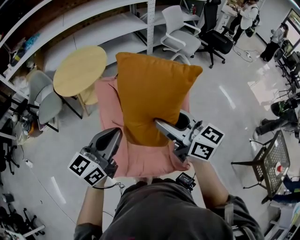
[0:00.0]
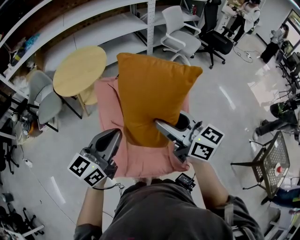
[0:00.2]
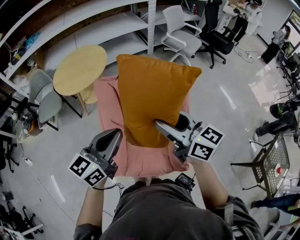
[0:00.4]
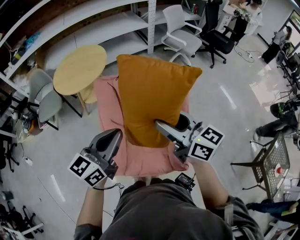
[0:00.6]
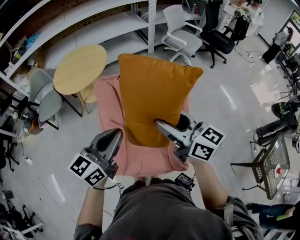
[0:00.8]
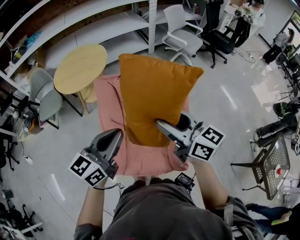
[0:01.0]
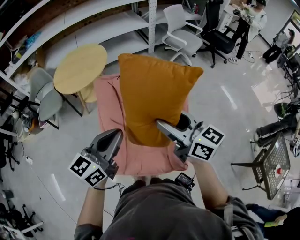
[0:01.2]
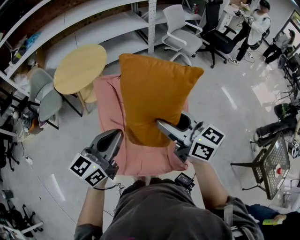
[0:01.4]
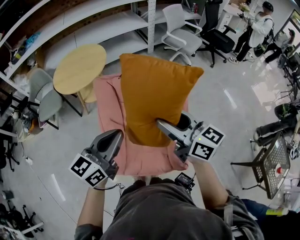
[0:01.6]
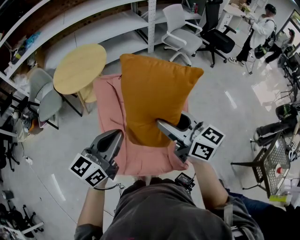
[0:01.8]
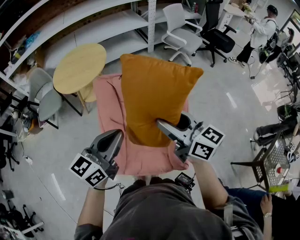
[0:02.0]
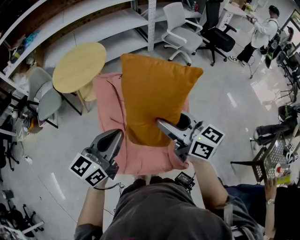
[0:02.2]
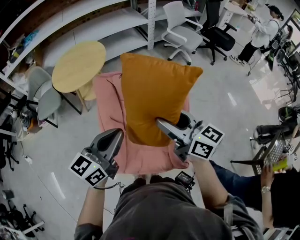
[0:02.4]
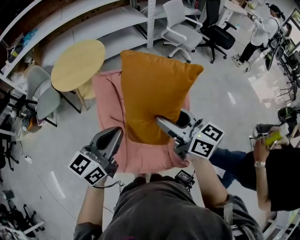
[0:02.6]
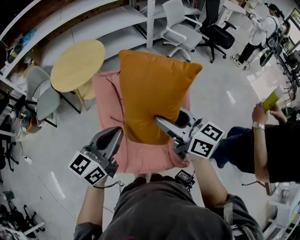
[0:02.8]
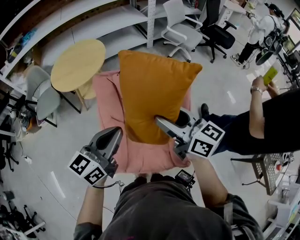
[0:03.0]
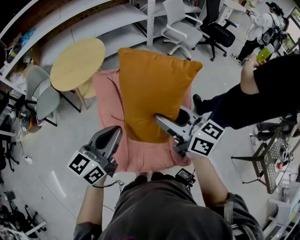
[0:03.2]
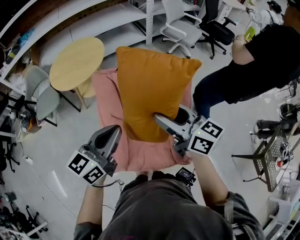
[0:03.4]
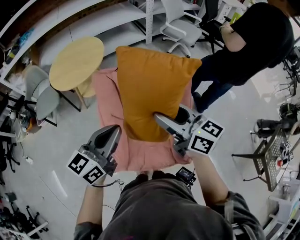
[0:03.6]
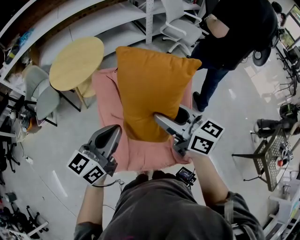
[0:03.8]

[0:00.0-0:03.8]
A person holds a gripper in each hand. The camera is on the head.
0:00.0 to 0:03.8: The grippers move only a little.

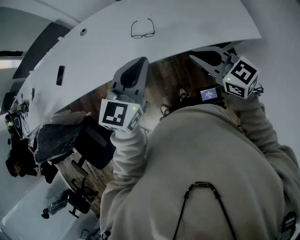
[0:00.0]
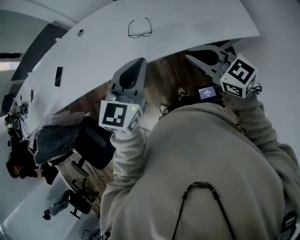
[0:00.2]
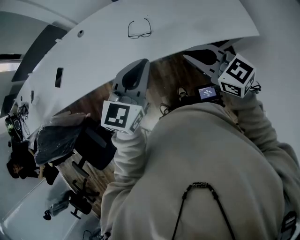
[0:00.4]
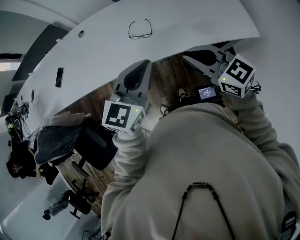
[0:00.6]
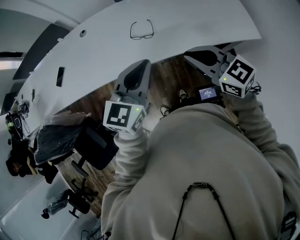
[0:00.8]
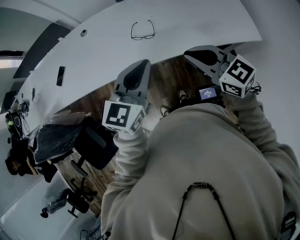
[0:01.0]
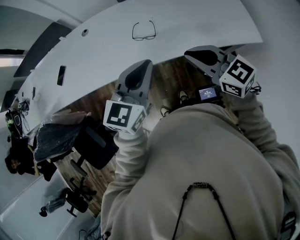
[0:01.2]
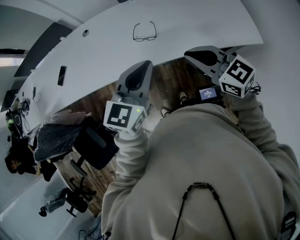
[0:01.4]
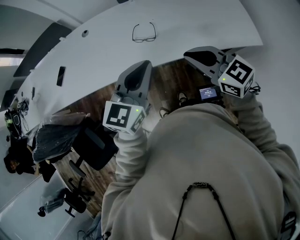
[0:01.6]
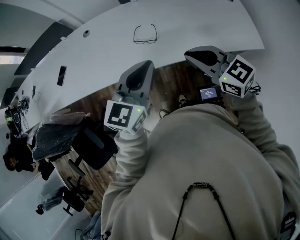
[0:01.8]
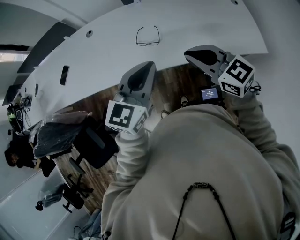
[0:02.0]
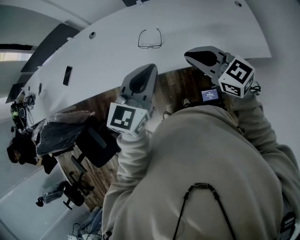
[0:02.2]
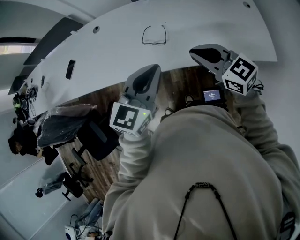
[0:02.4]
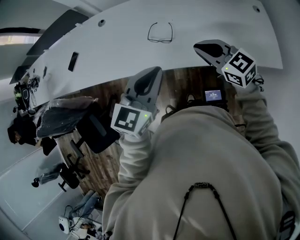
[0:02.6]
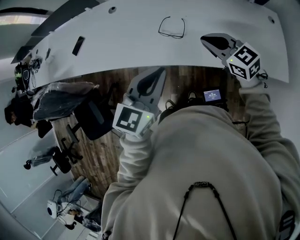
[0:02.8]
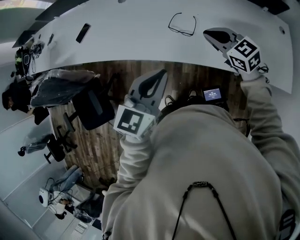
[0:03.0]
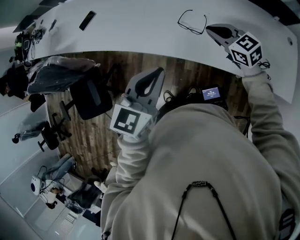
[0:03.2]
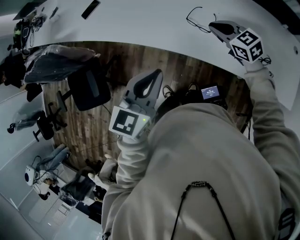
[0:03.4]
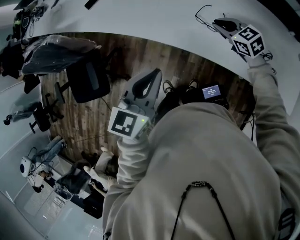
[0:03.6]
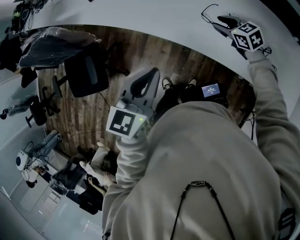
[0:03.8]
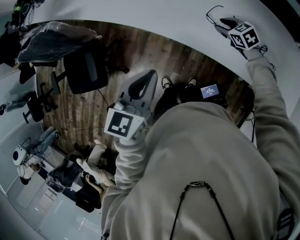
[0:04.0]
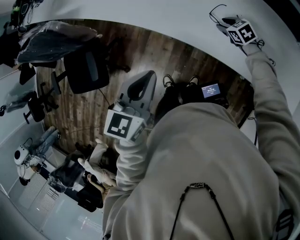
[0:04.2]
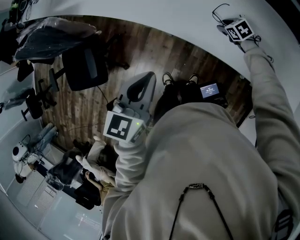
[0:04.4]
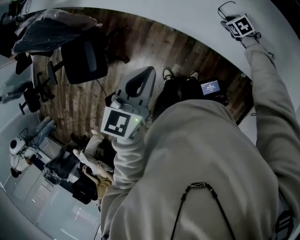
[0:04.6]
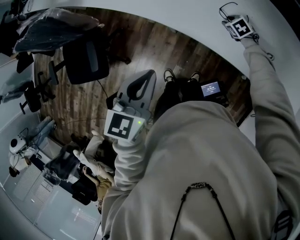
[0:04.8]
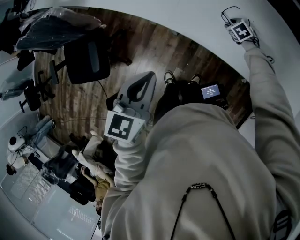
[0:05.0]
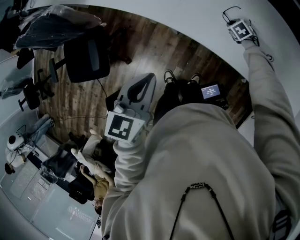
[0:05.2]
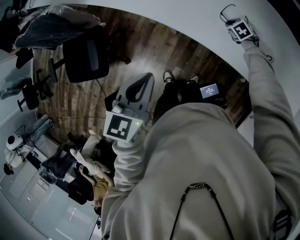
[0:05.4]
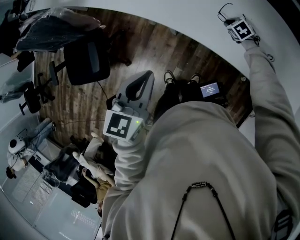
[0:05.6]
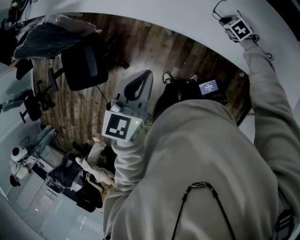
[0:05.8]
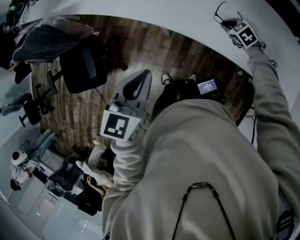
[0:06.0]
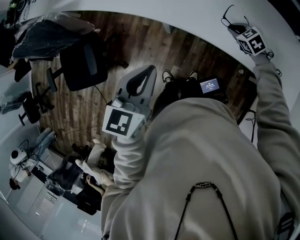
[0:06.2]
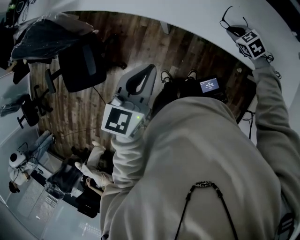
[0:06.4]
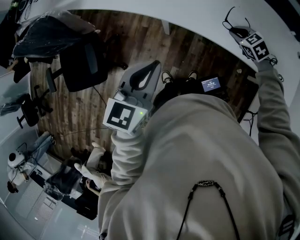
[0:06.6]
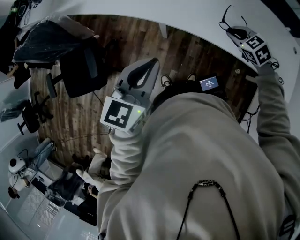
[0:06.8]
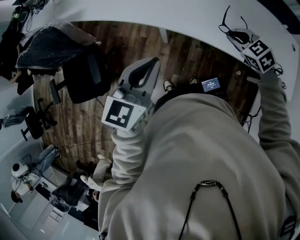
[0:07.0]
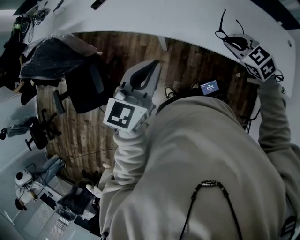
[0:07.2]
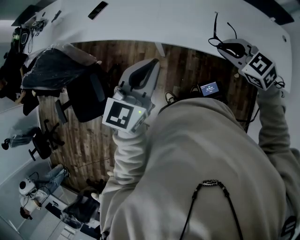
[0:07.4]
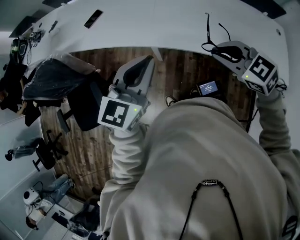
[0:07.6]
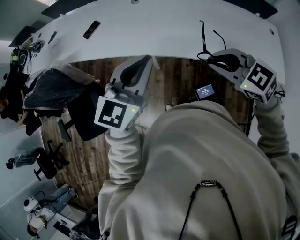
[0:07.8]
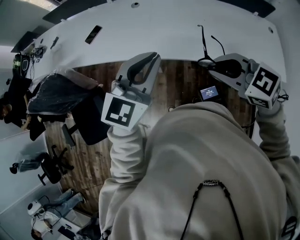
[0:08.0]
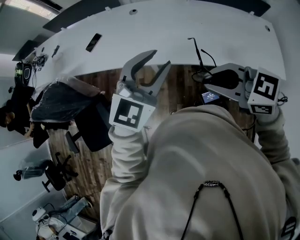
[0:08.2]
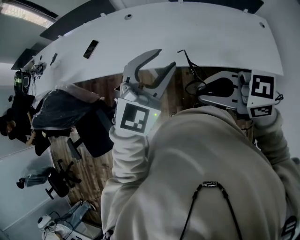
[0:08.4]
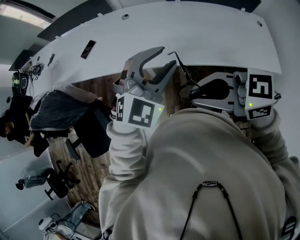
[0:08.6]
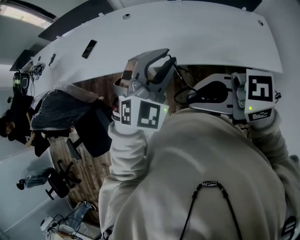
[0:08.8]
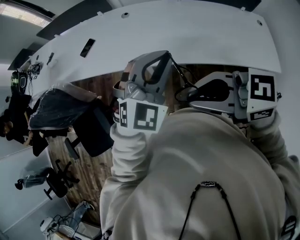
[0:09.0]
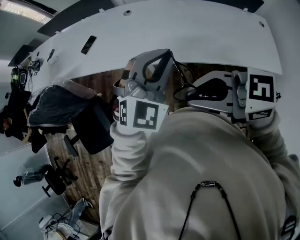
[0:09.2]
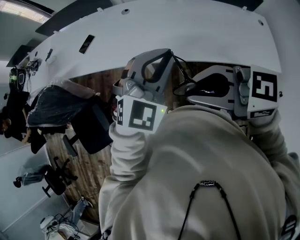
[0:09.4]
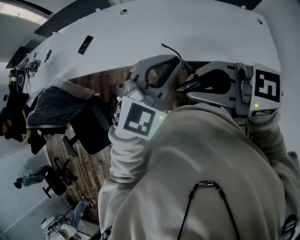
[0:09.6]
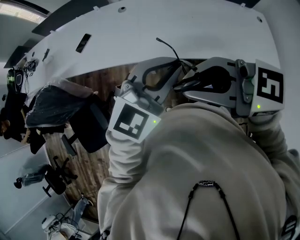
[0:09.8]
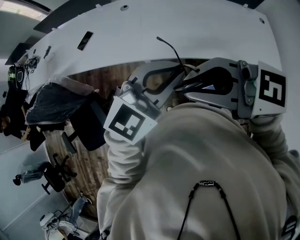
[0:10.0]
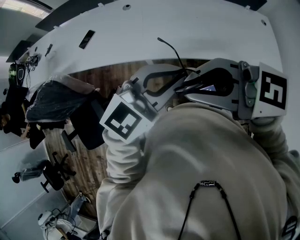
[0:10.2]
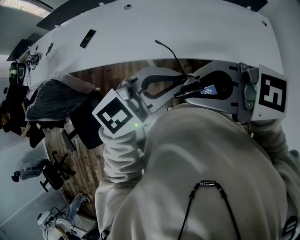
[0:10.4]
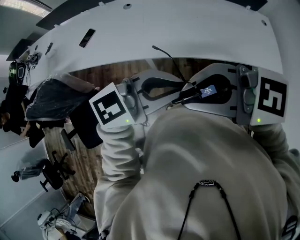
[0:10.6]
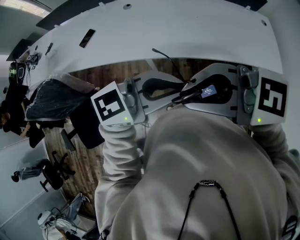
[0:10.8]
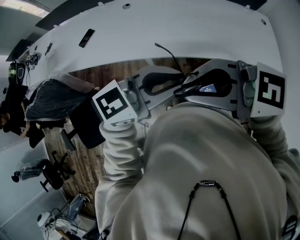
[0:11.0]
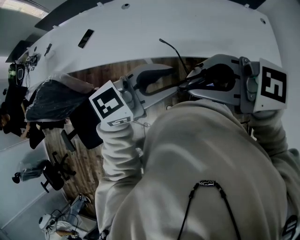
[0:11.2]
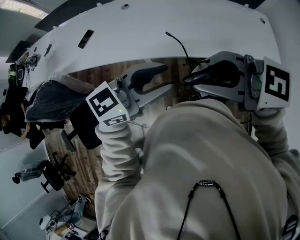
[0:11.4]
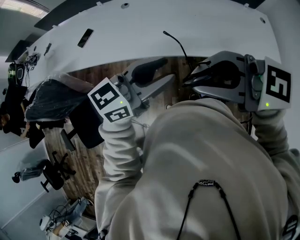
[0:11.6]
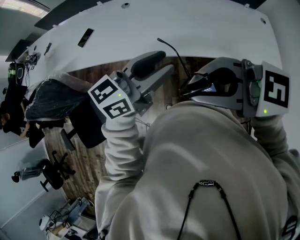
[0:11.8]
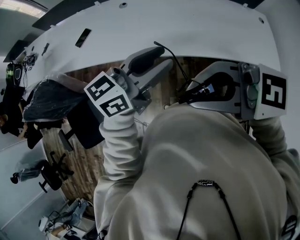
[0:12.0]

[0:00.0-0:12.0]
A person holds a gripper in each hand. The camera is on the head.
0:00.0 to 0:01.6: The grippers make only small movements.
0:01.6 to 0:03.0: The right gripper is displaced forward and downward by approximately 20 cm.
0:03.0 to 0:04.4: The left gripper shifts roughly 20 cm to the left and downward, and turns by about 20 degrees; the right gripper travels downward and forward by about 30 cm, tilts its fingers some 40 degrees downward, and opens its fingers.
0:04.4 to 0:06.0: The right gripper goes roughly 5 cm upward, and closes up.
0:06.0 to 0:07.6: The left gripper travels upward by about 10 cm, and changes its angle by about 30 degrees. The right gripper shifts about 35 cm upward and backward, and swivels roughly 30 degrees.
0:07.6 to 0:09.0: The left gripper goes some 10 cm to the right and upward, turns by some 40 degrees, and opens, then closes again. The right gripper travels upward, to the left and backward by approximately 20 cm, and turns by roughly 30 degrees.
0:09.0 to 0:10.4: The left gripper ends up approximately 10 cm from where it was, and swivels some 40 degrees.
0:10.4 to 0:12.0: The left gripper changes place by approximately 5 cm, turns by about 30 degrees, and opens up.

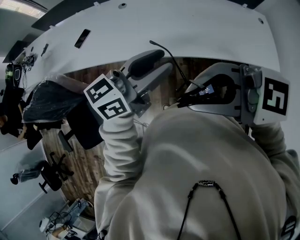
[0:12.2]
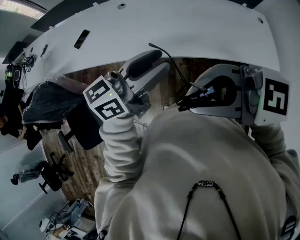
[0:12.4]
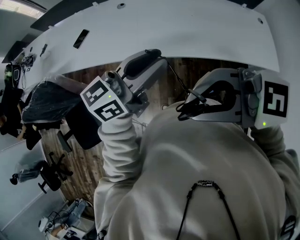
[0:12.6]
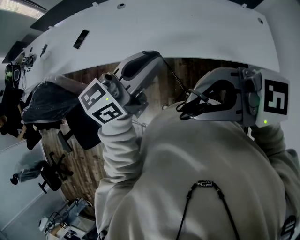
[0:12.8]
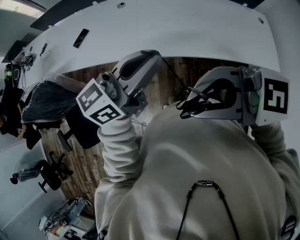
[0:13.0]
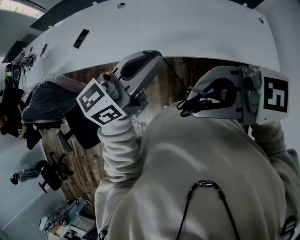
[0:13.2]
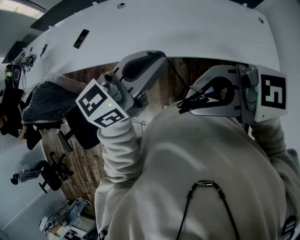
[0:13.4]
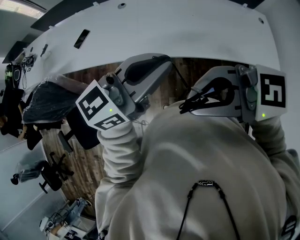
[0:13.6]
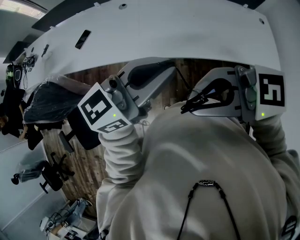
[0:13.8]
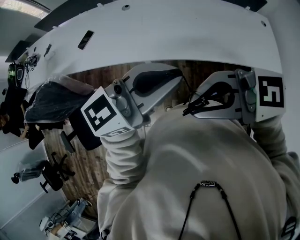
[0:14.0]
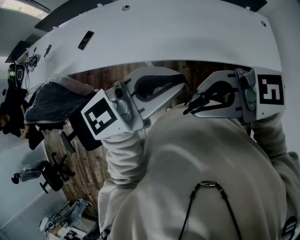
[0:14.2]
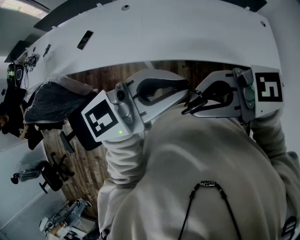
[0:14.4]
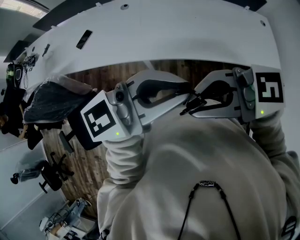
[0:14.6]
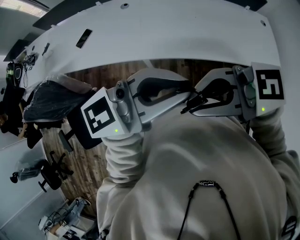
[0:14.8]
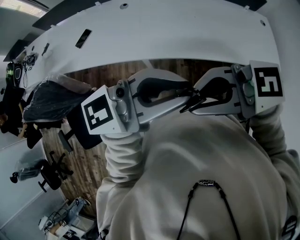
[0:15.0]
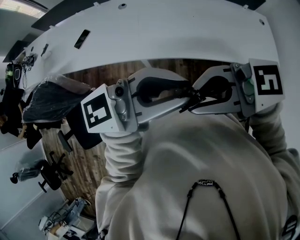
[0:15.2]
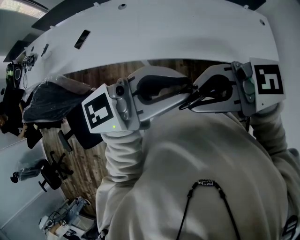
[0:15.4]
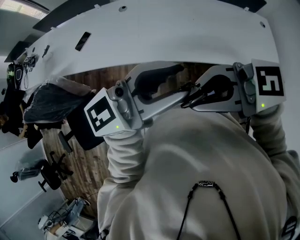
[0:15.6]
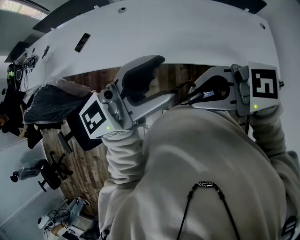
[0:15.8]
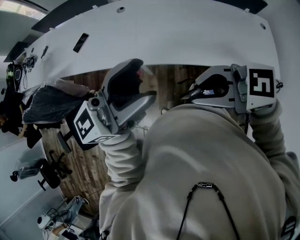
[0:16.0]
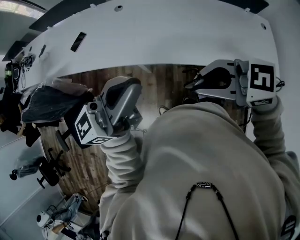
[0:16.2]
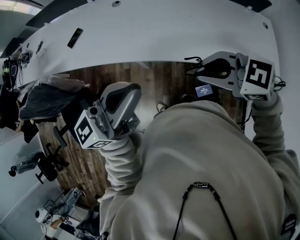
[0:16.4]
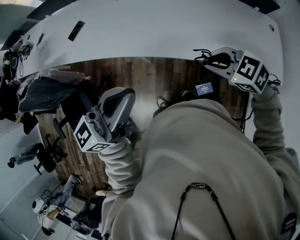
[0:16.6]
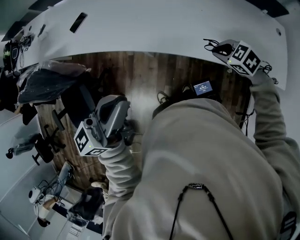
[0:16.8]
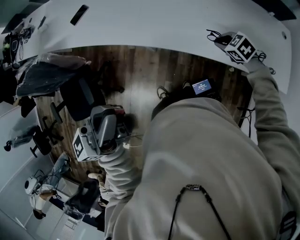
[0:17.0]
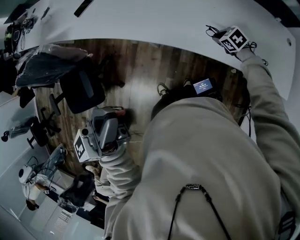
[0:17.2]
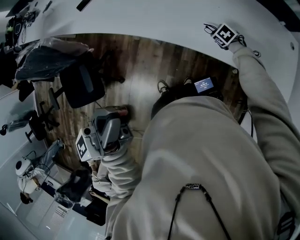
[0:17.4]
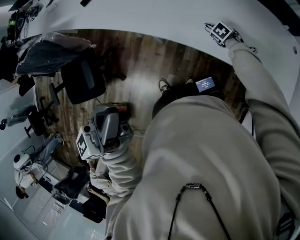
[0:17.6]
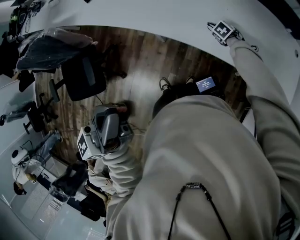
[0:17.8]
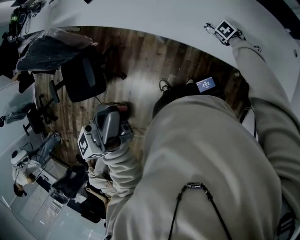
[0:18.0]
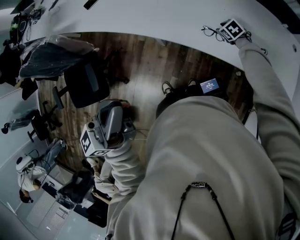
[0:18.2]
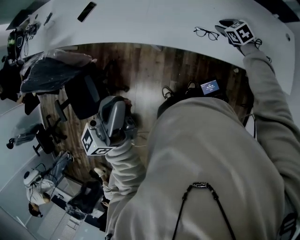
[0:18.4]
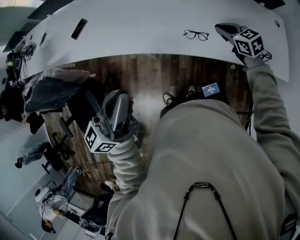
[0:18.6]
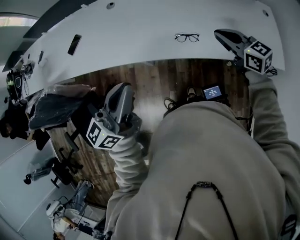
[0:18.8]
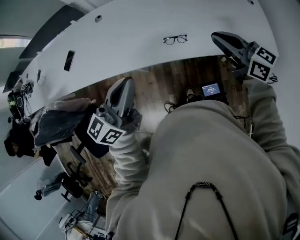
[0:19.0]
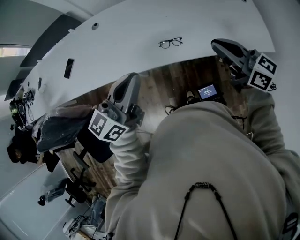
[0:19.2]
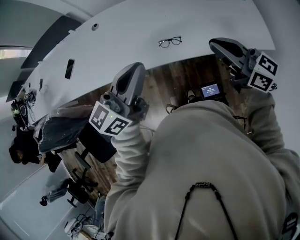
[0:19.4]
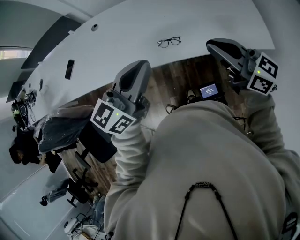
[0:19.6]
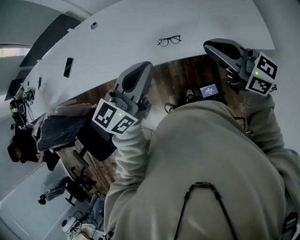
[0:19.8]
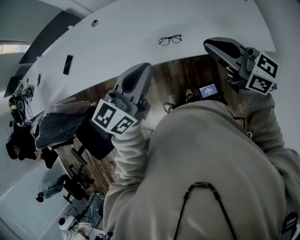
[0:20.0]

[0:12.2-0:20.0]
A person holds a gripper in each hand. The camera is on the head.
0:12.2 to 0:13.8: The left gripper shifts by about 5 cm, and closes.
0:13.8 to 0:15.4: The left gripper shifts by roughly 5 cm.
0:15.4 to 0:16.8: The right gripper moves about 40 cm, and angles its fingers downward, by roughly 50 degrees, while the left gripper shifts by about 10 cm, rotates approximately 40 degrees, and opens, then closes again.
0:16.8 to 0:18.4: The left gripper changes place by approximately 5 cm. Meanwhile the right gripper opens its fingers.
0:18.4 to 0:20.0: The left gripper moves to the right and forward, some 20 cm, and swivels about 30 degrees, while the right gripper goes some 35 cm upward and backward, tips its fingers upward by approximately 50 degrees, and closes.
